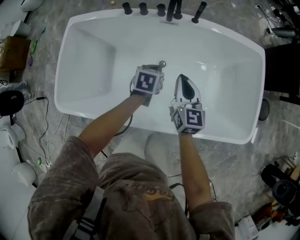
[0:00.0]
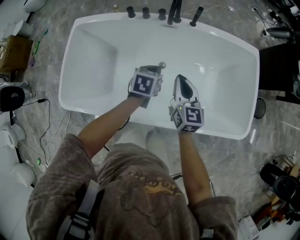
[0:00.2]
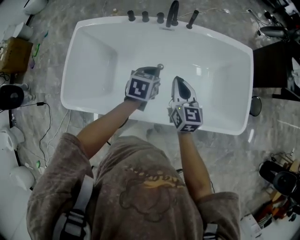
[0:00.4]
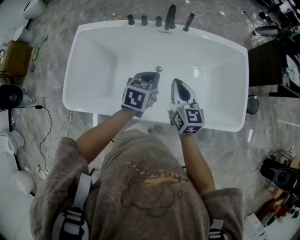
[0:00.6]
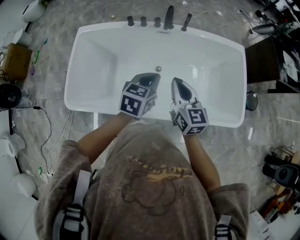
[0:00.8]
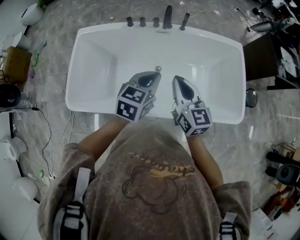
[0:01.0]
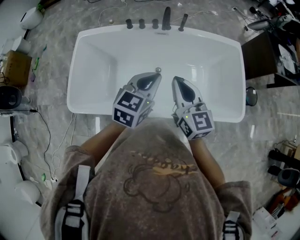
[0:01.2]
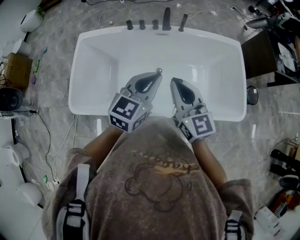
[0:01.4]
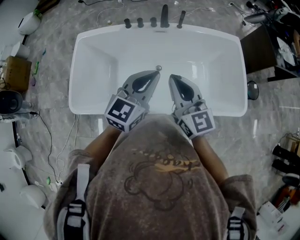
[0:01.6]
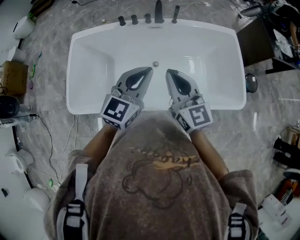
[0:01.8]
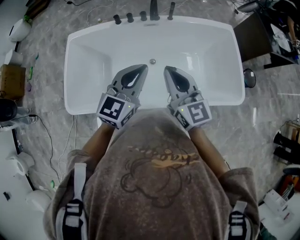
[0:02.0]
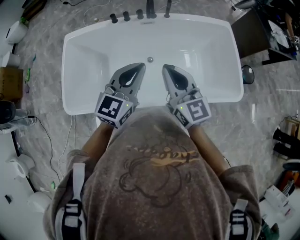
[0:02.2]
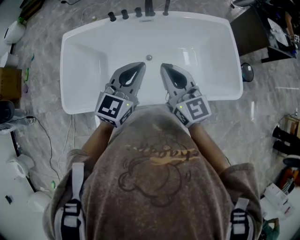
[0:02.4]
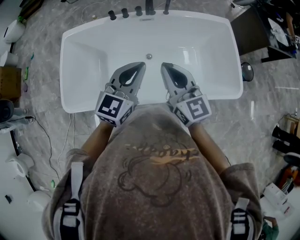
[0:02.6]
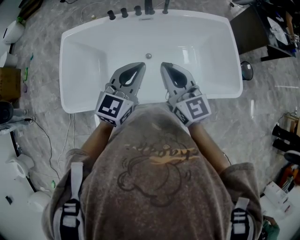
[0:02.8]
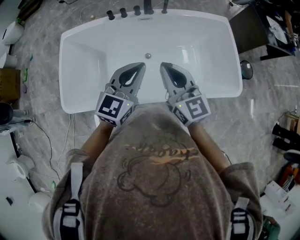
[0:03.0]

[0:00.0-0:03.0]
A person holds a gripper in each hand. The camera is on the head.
0:00.0 to 0:01.6: The grippers both shift upward and backward by roughly 35 cm. The left gripper points its fingers roughly 40 degrees further upward.
0:01.6 to 0:03.0: The grippers make only small movements.

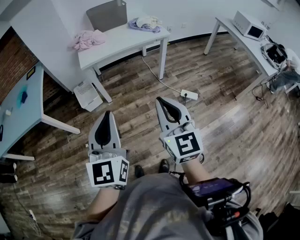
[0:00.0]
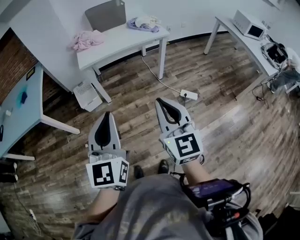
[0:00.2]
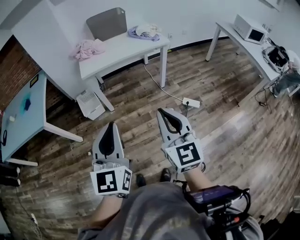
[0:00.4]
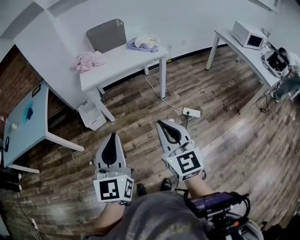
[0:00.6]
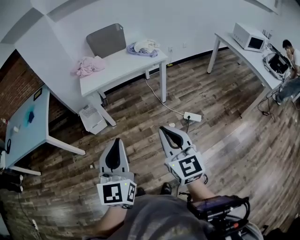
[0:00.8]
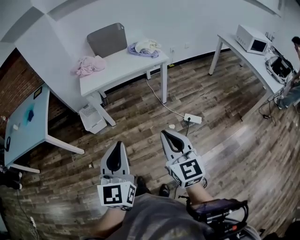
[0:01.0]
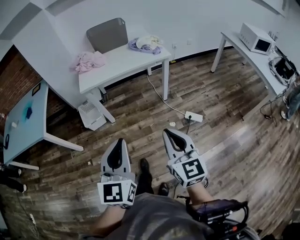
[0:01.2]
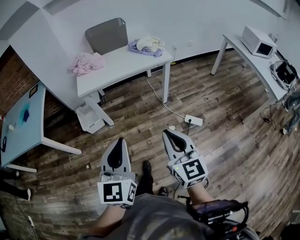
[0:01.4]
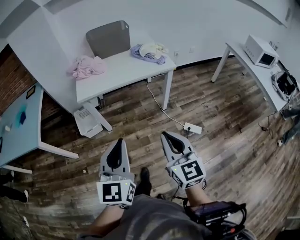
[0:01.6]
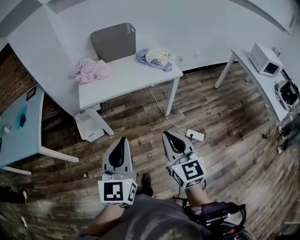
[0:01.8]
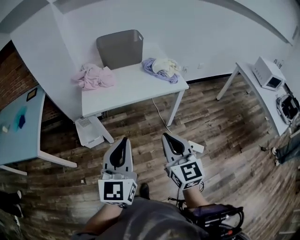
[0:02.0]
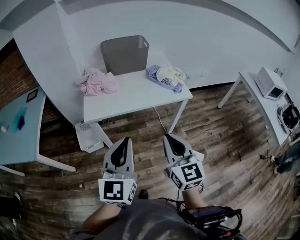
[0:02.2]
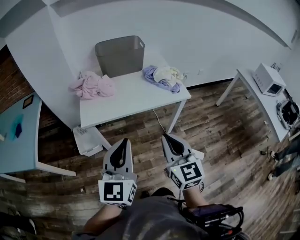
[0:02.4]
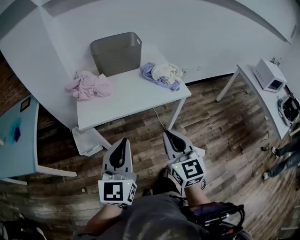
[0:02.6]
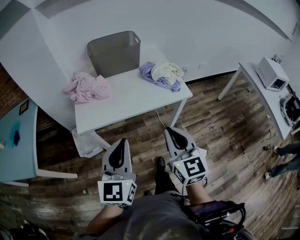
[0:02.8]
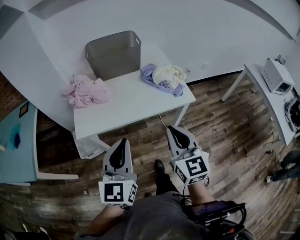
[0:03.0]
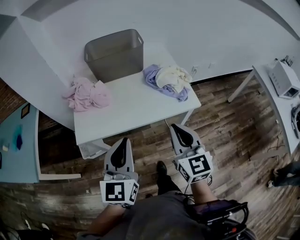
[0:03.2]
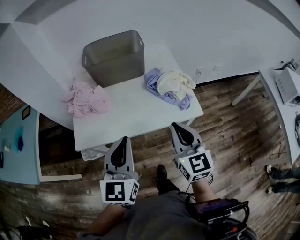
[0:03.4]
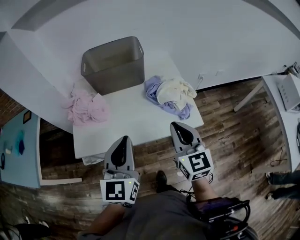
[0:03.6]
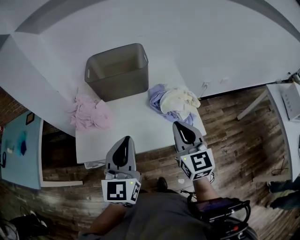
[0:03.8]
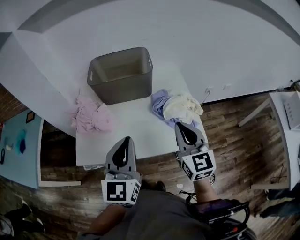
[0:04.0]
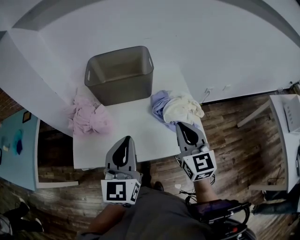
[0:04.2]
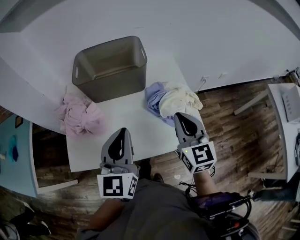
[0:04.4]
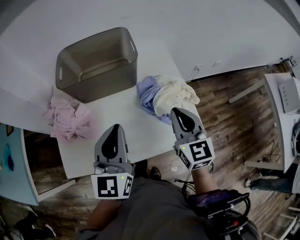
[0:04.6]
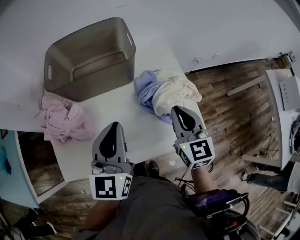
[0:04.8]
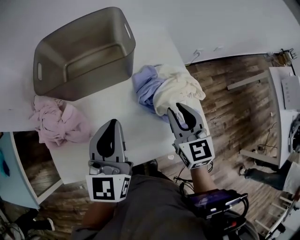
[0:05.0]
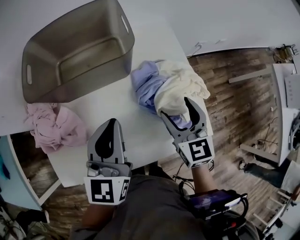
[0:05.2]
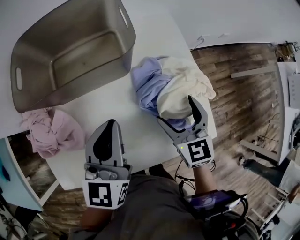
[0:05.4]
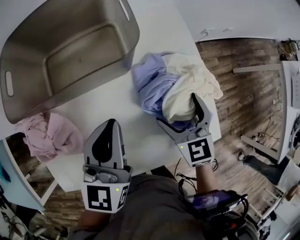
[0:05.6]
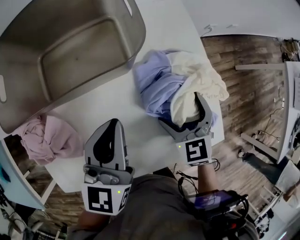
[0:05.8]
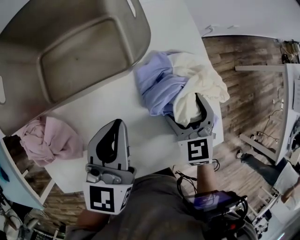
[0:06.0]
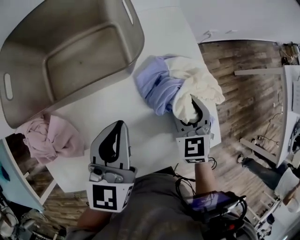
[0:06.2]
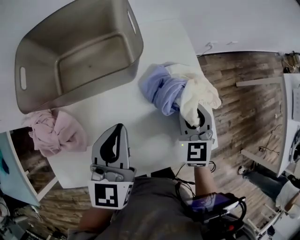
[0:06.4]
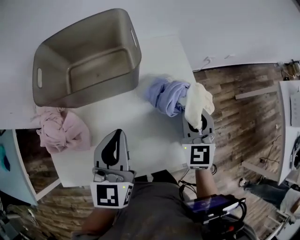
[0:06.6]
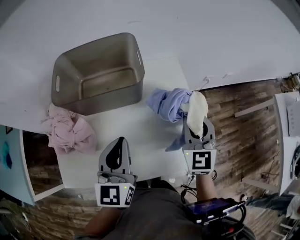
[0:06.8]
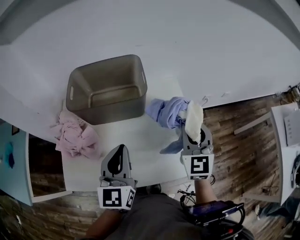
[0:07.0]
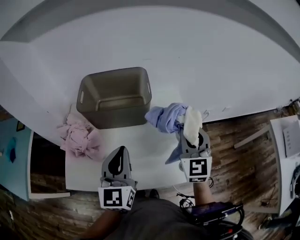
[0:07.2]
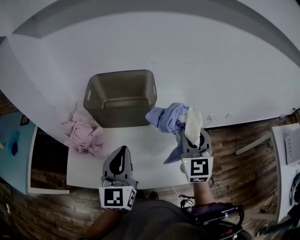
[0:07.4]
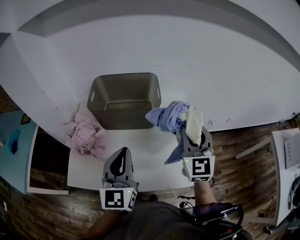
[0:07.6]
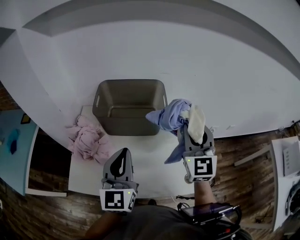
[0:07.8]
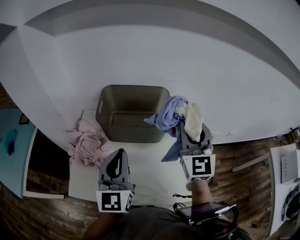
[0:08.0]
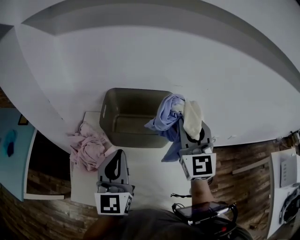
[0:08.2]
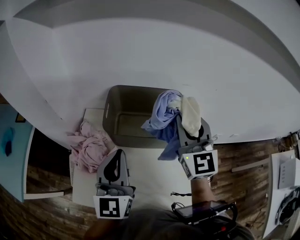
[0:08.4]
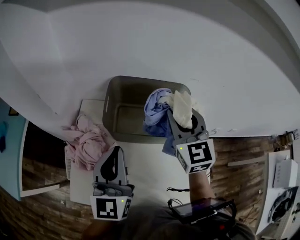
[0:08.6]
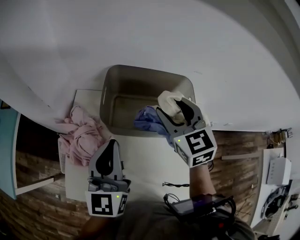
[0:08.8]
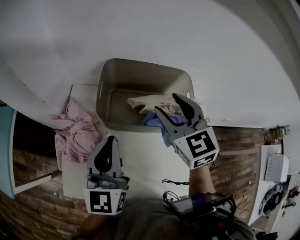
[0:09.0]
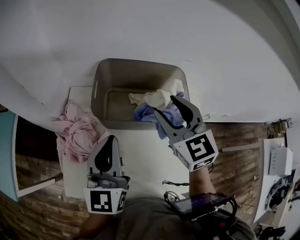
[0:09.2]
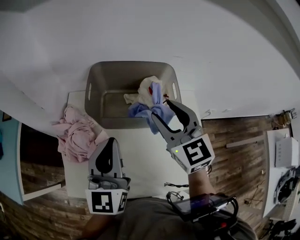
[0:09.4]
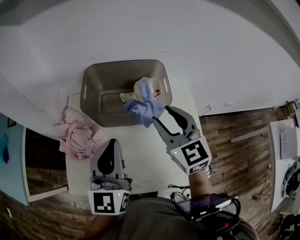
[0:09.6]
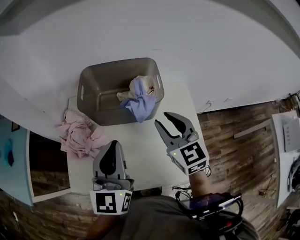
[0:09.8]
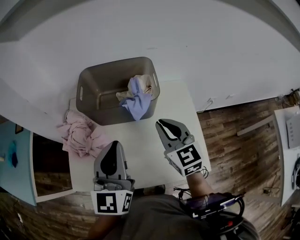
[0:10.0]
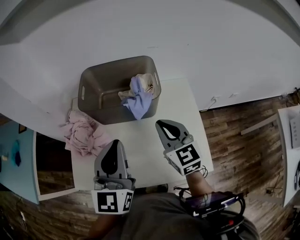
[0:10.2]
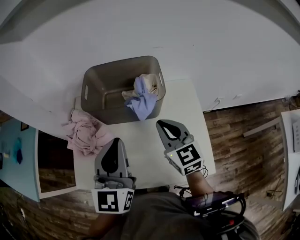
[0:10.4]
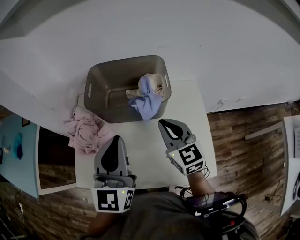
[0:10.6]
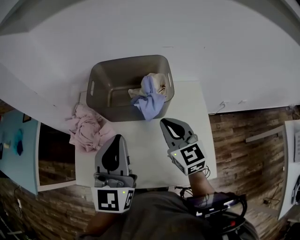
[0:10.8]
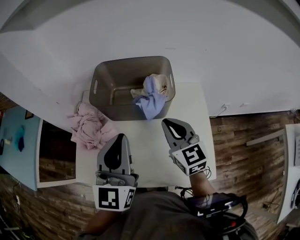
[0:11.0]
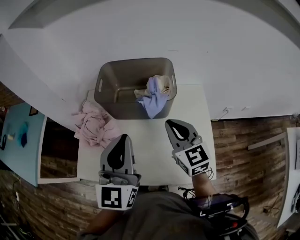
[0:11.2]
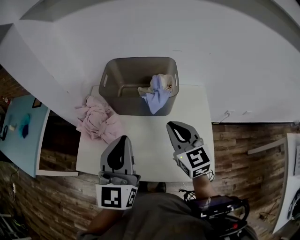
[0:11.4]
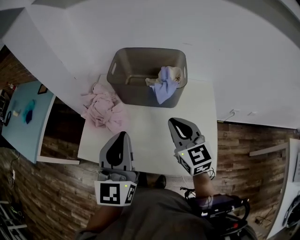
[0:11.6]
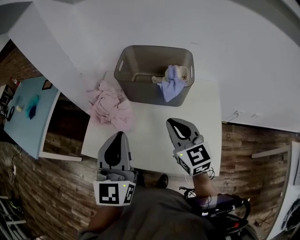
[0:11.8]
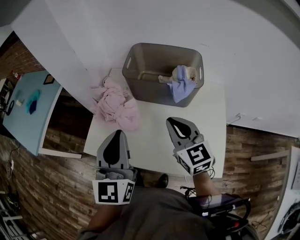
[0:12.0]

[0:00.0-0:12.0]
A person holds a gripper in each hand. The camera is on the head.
0:00.0 to 0:01.6: Both grippers move forward and to the right, roughly 20 cm.
0:01.6 to 0:03.0: The two grippers go about 30 cm forward.
0:03.0 to 0:04.4: The grippers both shift forward by approximately 30 cm.
0:04.4 to 0:06.0: The right gripper goes some 25 cm downward and forward, points its fingers roughly 30 degrees further downward, and opens its fingers; the left gripper shifts some 25 cm forward and downward, and rotates some 20 degrees.
0:06.0 to 0:07.6: The left gripper goes roughly 20 cm upward and backward, and changes its angle by about 30 degrees. Meanwhile the right gripper heads upward, covering about 30 cm, points its fingers approximately 40 degrees further upward, and closes its fingers.
0:07.6 to 0:09.0: The left gripper heads forward and to the left, covering some 20 cm. Meanwhile the right gripper is displaced to the left and forward by roughly 30 cm, and rotates approximately 30 degrees.
0:09.0 to 0:10.4: The left gripper moves to the right and backward, some 15 cm, while the right gripper is displaced backward, to the right and downward by about 20 cm, and closes its fingers.
0:10.4 to 0:12.0: The grippers both shift to the left and backward by approximately 10 cm.

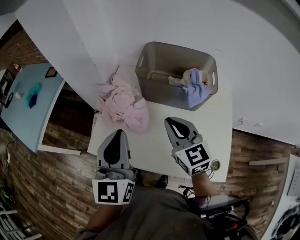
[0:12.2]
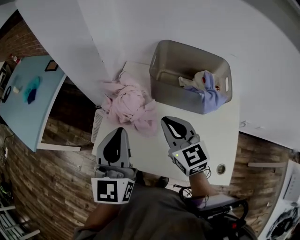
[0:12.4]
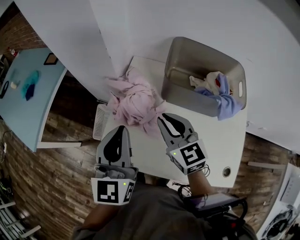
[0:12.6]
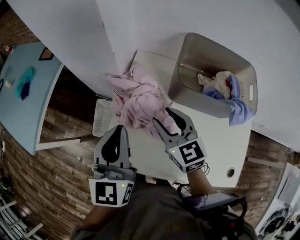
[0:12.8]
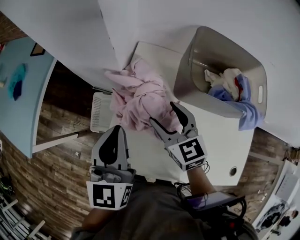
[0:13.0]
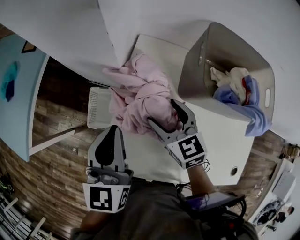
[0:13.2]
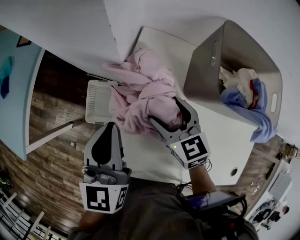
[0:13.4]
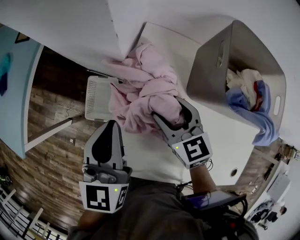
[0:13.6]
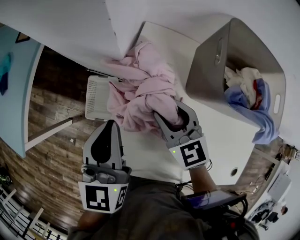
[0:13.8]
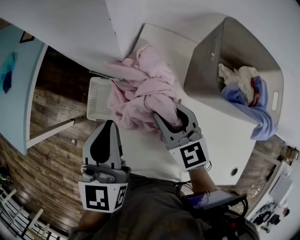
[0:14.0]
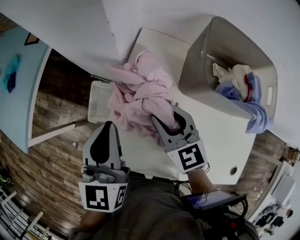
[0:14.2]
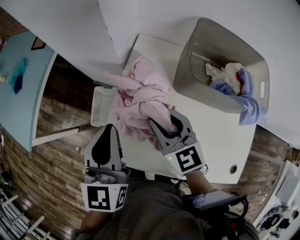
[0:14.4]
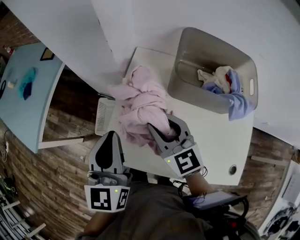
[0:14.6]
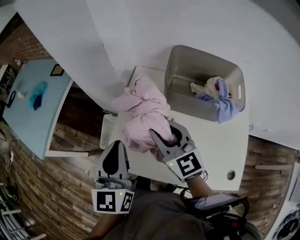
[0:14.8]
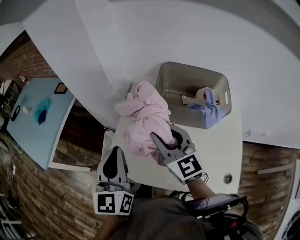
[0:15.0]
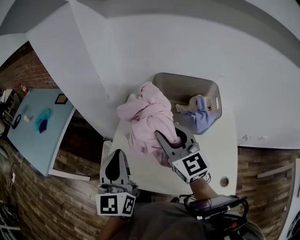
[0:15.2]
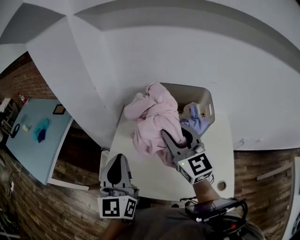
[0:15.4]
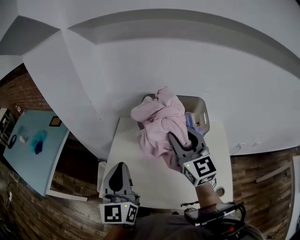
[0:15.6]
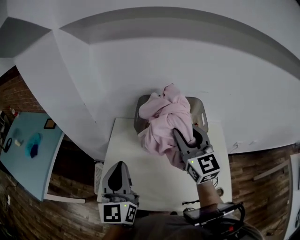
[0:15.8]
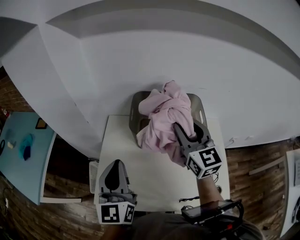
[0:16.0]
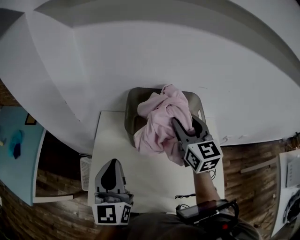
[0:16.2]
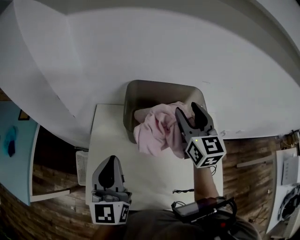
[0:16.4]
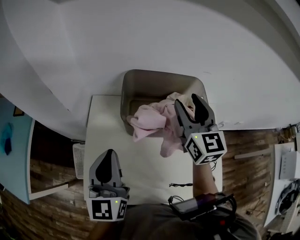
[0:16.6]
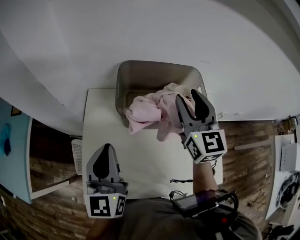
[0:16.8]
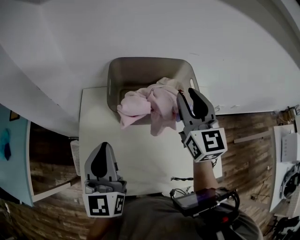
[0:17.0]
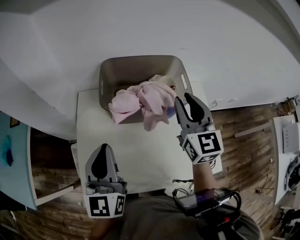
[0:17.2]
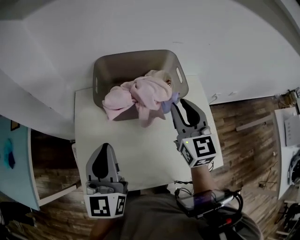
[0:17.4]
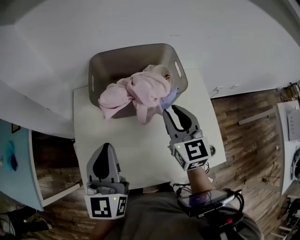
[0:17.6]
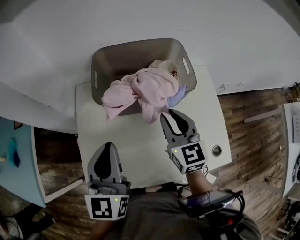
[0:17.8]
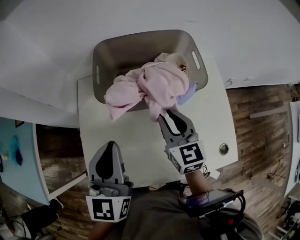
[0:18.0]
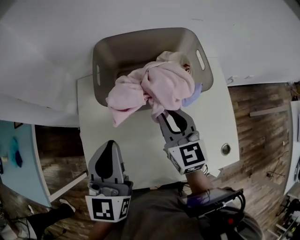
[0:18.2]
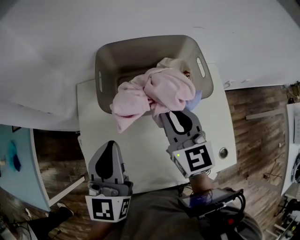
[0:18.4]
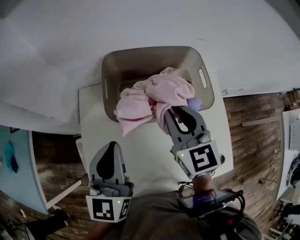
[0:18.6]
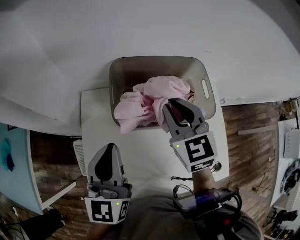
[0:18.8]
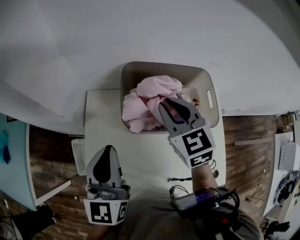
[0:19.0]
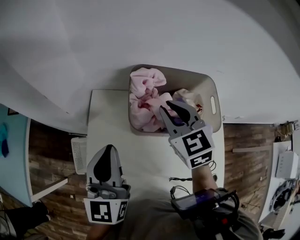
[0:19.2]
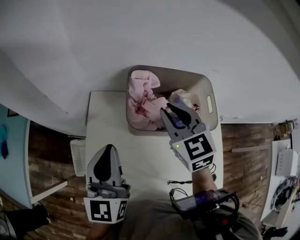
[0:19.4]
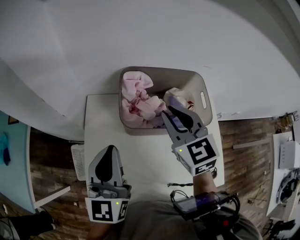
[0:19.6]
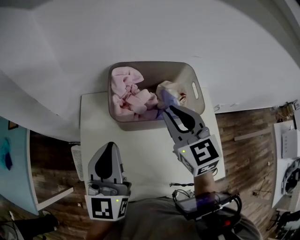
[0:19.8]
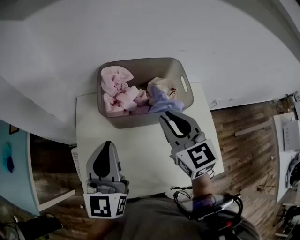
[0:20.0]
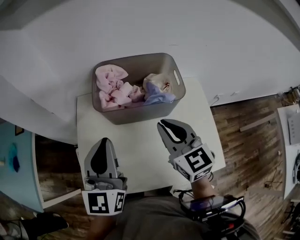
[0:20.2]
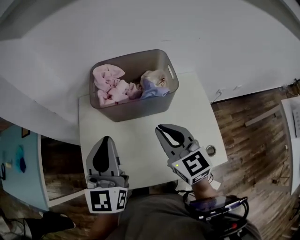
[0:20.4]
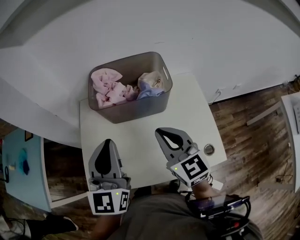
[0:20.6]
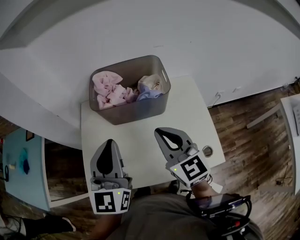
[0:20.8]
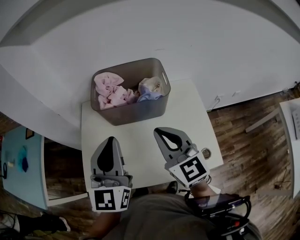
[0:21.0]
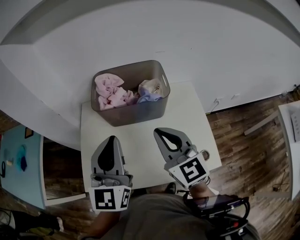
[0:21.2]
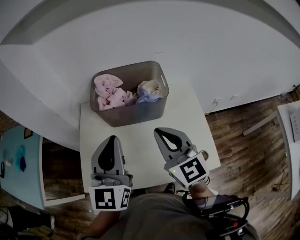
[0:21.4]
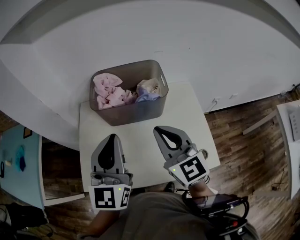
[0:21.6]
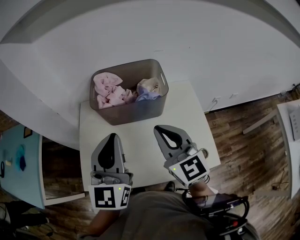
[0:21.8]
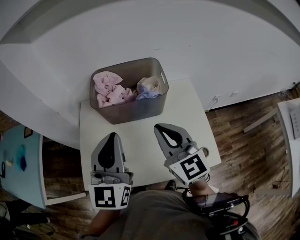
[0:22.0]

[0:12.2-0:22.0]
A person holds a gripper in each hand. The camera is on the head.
0:12.2 to 0:13.6: Both grippers move forward, downward and to the left, roughly 30 cm. The left gripper changes its angle by some 20 degrees. Meanwhile the right gripper opens up.
0:13.6 to 0:15.0: The right gripper goes roughly 25 cm upward and backward, and swivels approximately 30 degrees. The left gripper is displaced backward and upward by approximately 25 cm.
0:15.0 to 0:16.4: The right gripper moves to the right and forward, roughly 25 cm, and rotates roughly 30 degrees. The left gripper travels forward and to the right by approximately 15 cm.
0:16.4 to 0:17.8: The right gripper travels downward and backward by about 20 cm, while the left gripper shifts approximately 5 cm to the right.
0:17.8 to 0:19.2: The right gripper heads forward, to the left and upward, covering about 20 cm, and changes its angle by roughly 30 degrees. Meanwhile the left gripper heads to the left and forward, covering about 15 cm.
0:19.2 to 0:20.6: The left gripper shifts roughly 20 cm to the right and backward, while the right gripper travels backward and to the right by roughly 25 cm, and rotates some 20 degrees.
0:20.6 to 0:22.0: The right gripper shifts by roughly 5 cm.
